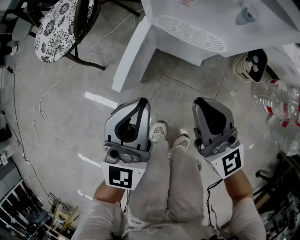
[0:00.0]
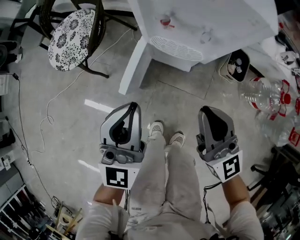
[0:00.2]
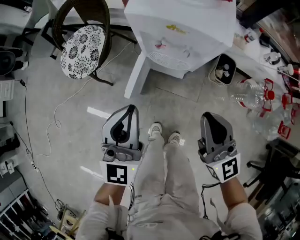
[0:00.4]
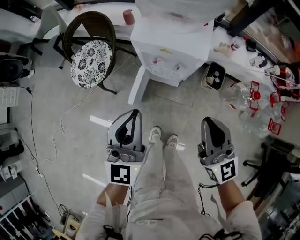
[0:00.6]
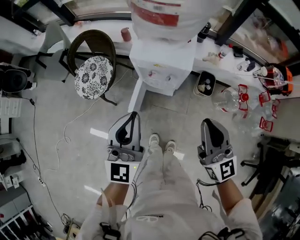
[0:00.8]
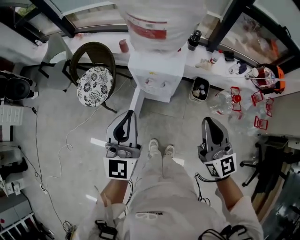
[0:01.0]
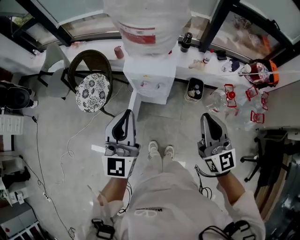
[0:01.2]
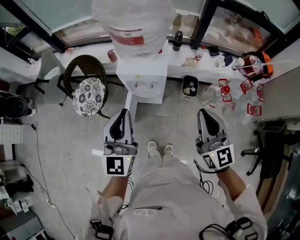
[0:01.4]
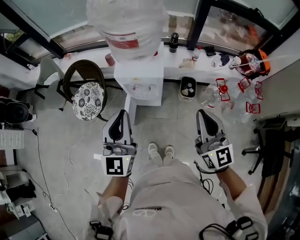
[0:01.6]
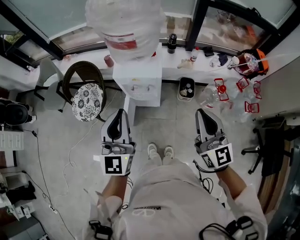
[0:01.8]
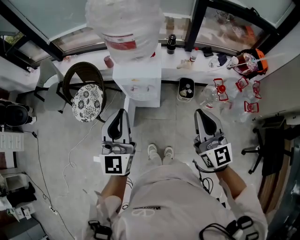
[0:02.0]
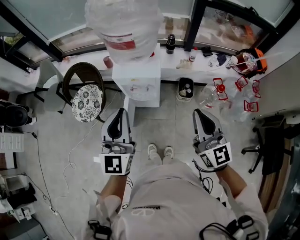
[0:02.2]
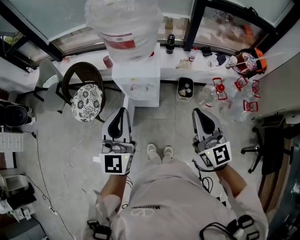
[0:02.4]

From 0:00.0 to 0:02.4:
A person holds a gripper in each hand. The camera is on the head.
From 0:00.0 to 0:01.2: The two grippers go roughly 50 cm upward. The right gripper swivels roughly 30 degrees.
From 0:01.2 to 0:02.4: The grippers make only small movements.

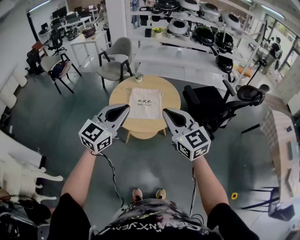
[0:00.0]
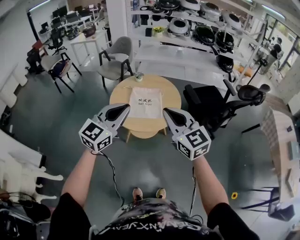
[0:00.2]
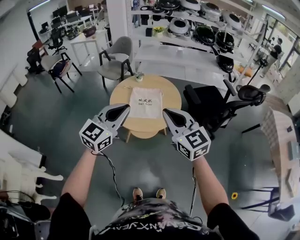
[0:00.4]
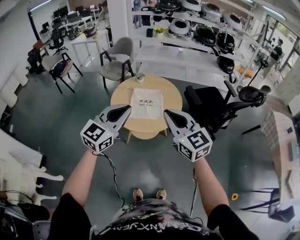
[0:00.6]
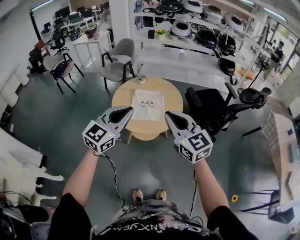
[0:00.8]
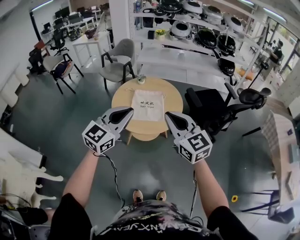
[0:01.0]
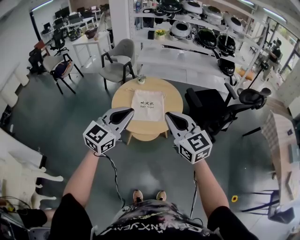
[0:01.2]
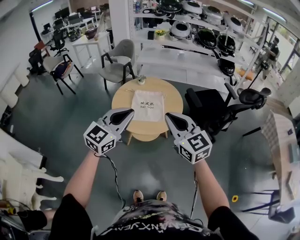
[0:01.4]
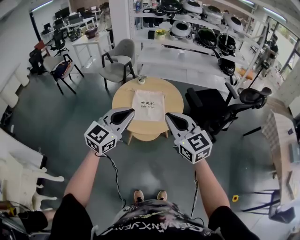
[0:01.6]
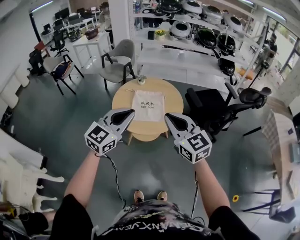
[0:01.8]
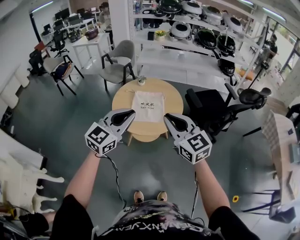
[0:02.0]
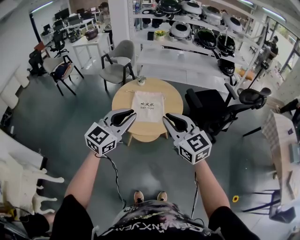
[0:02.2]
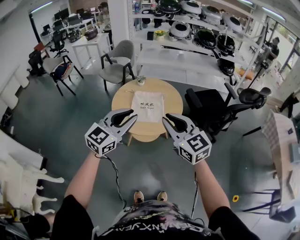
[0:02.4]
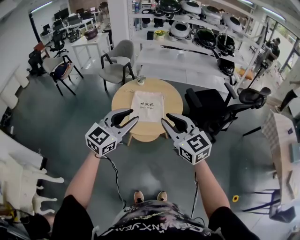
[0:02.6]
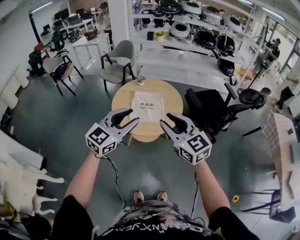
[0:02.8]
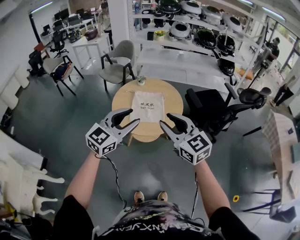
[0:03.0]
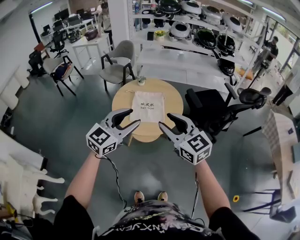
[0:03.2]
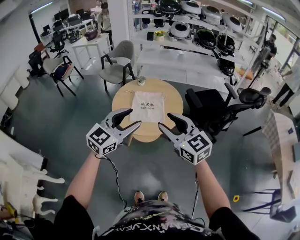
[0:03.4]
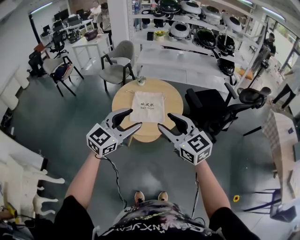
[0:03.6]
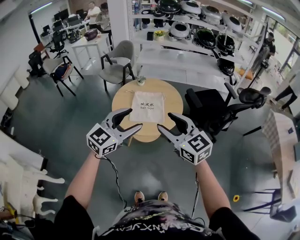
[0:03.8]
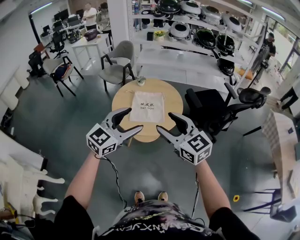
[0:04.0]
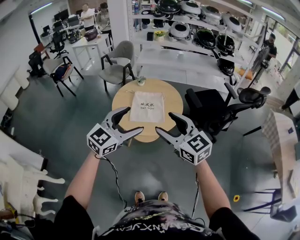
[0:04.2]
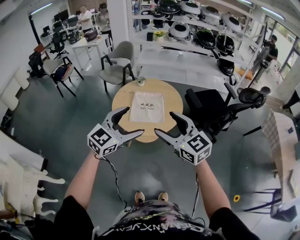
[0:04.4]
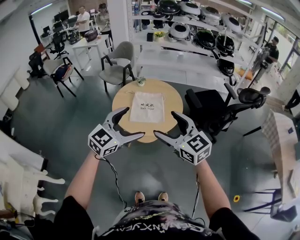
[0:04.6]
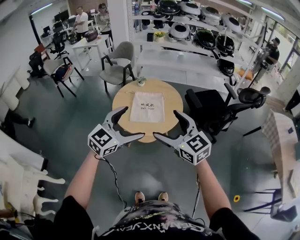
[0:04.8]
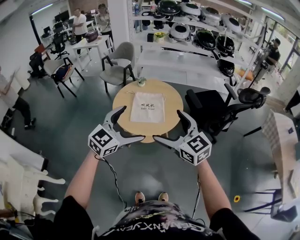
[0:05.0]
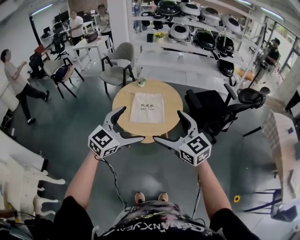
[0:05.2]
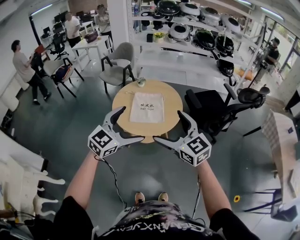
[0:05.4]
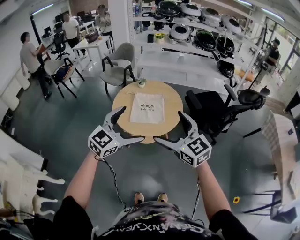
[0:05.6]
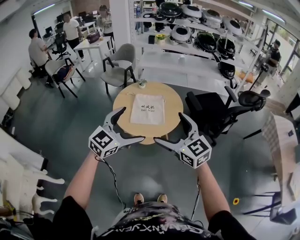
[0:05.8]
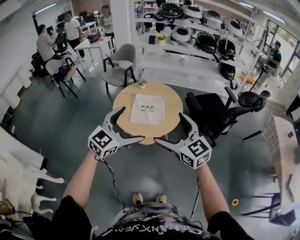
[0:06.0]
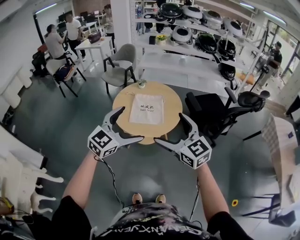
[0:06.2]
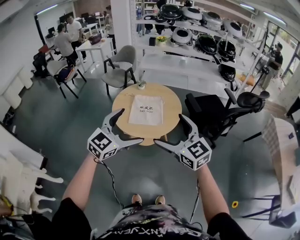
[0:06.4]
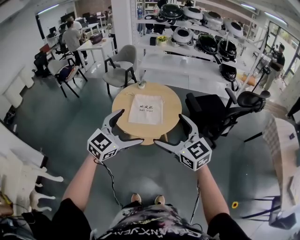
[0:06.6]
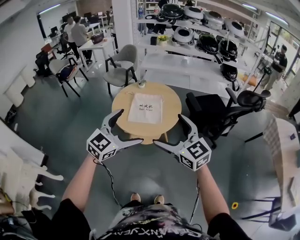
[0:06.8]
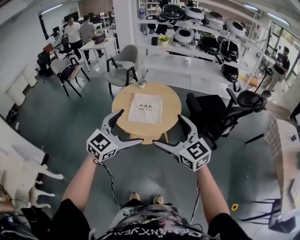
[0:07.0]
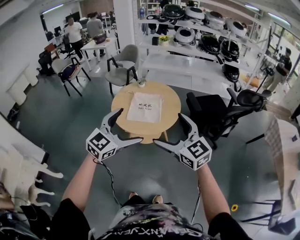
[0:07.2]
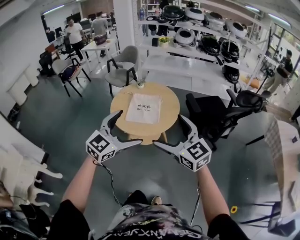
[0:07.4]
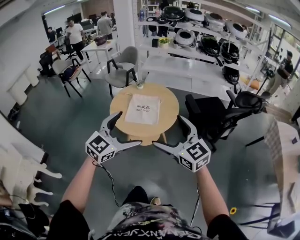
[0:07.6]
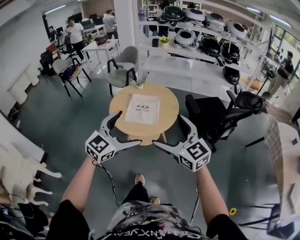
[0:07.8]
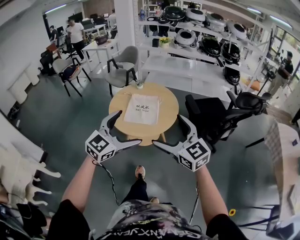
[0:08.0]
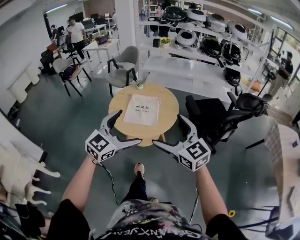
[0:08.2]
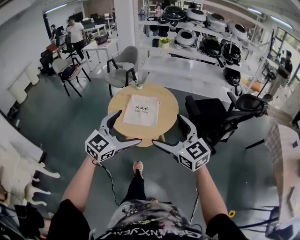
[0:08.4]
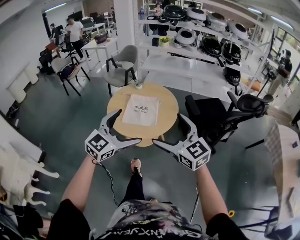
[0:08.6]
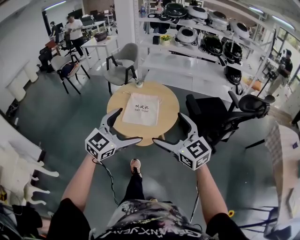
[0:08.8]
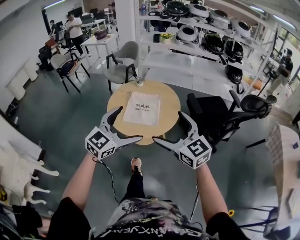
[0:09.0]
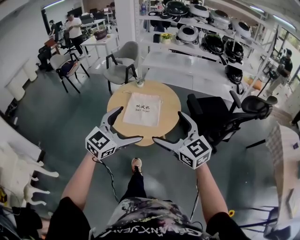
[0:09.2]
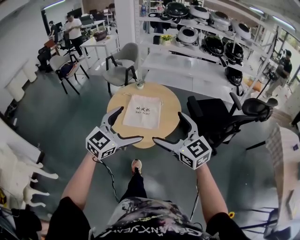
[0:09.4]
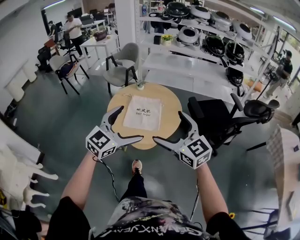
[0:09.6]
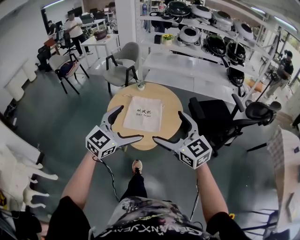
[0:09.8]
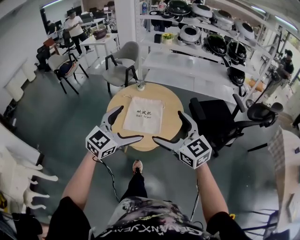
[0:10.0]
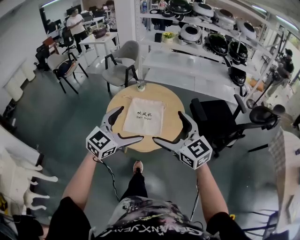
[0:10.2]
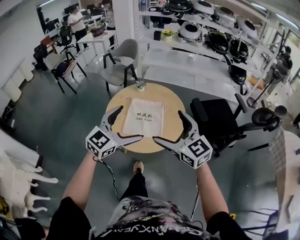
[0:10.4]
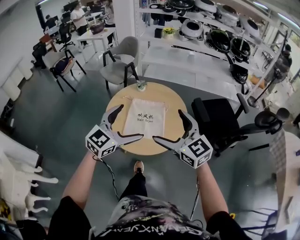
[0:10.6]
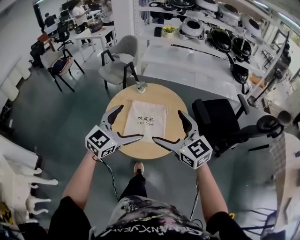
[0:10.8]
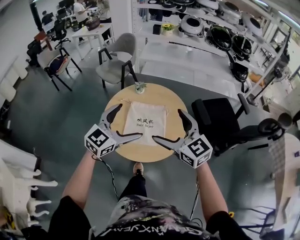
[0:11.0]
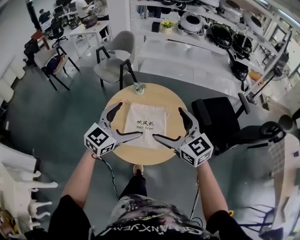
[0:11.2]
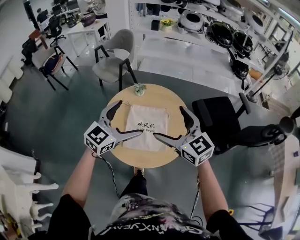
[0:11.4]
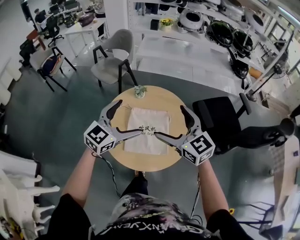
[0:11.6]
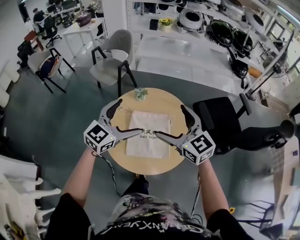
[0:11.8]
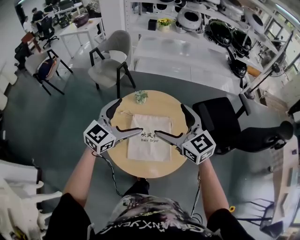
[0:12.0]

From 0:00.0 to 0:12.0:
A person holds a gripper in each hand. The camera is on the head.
From 0:00.0 to 0:03.0: The grippers stay close to where they were, moving slightly.
From 0:03.0 to 0:04.4: The right gripper opens; the left gripper opens its fingers.
From 0:04.4 to 0:06.0: The right gripper opens its fingers.
From 0:06.0 to 0:07.6: Both grippers move to the right, about 5 cm.
From 0:07.6 to 0:09.0: Both grippers move forward, about 5 cm.
From 0:09.0 to 0:10.4: Both grippers travel together forward, about 15 cm.
From 0:10.4 to 0:12.0: Both grippers travel together forward, roughly 25 cm.

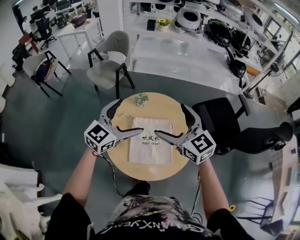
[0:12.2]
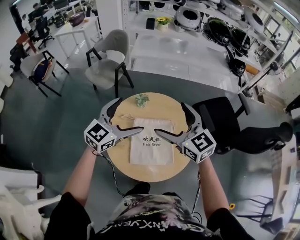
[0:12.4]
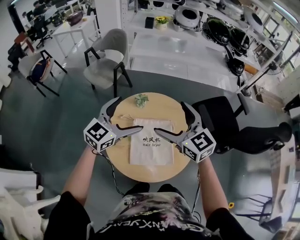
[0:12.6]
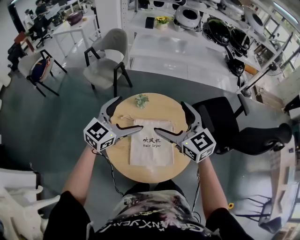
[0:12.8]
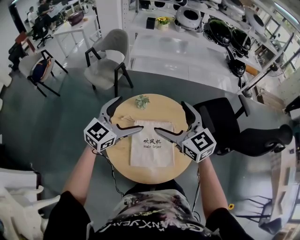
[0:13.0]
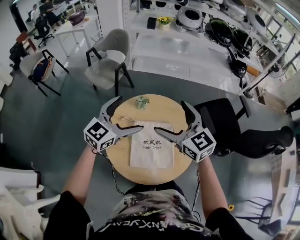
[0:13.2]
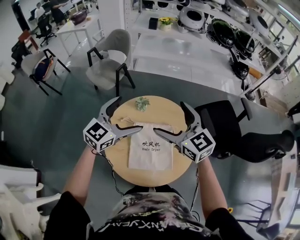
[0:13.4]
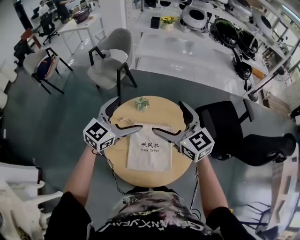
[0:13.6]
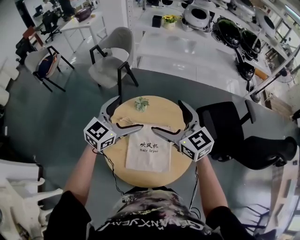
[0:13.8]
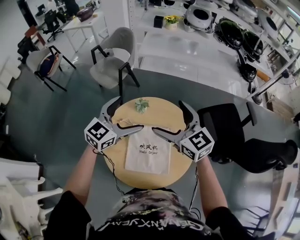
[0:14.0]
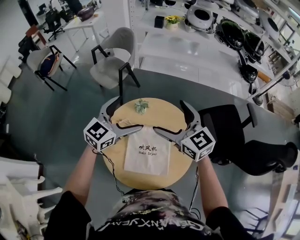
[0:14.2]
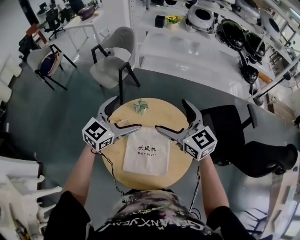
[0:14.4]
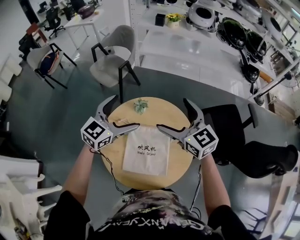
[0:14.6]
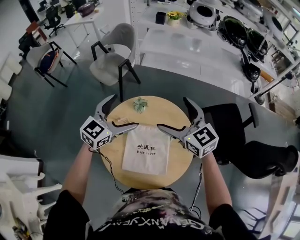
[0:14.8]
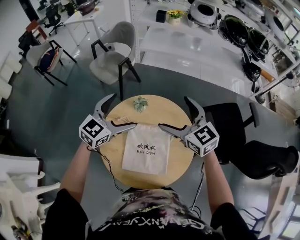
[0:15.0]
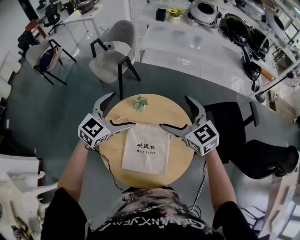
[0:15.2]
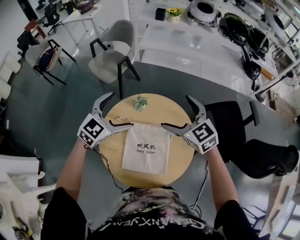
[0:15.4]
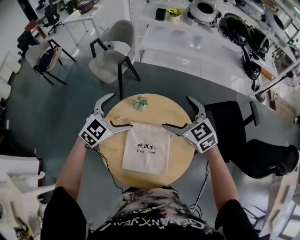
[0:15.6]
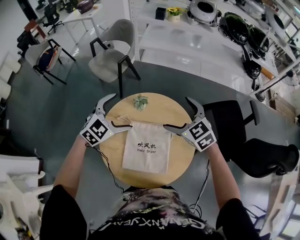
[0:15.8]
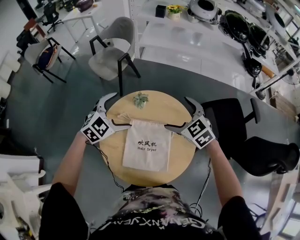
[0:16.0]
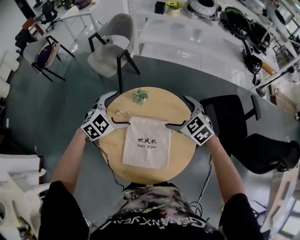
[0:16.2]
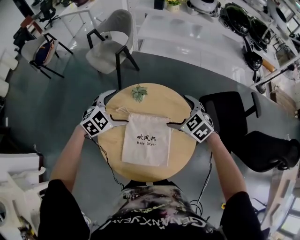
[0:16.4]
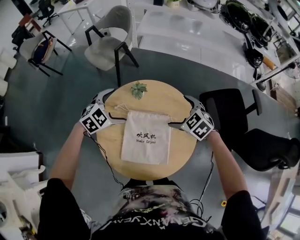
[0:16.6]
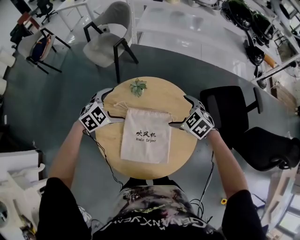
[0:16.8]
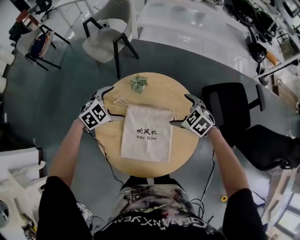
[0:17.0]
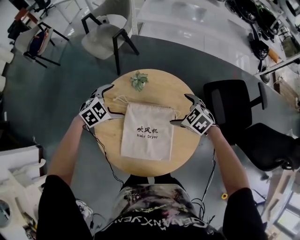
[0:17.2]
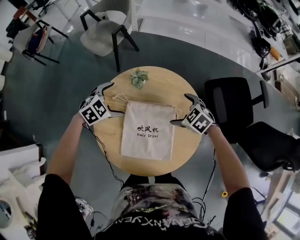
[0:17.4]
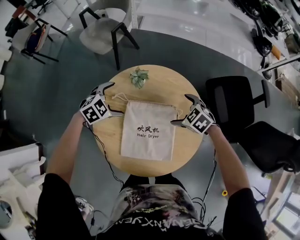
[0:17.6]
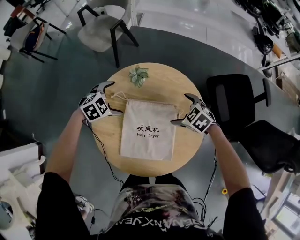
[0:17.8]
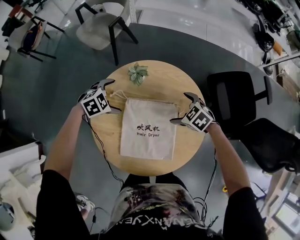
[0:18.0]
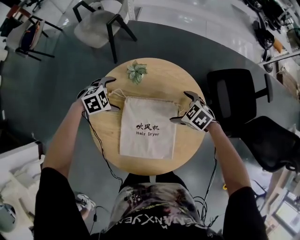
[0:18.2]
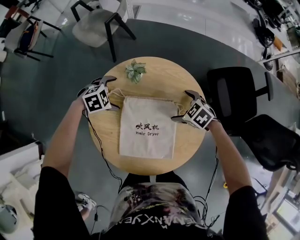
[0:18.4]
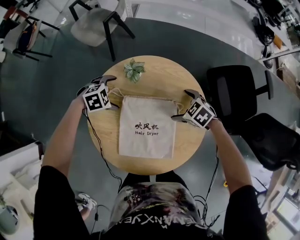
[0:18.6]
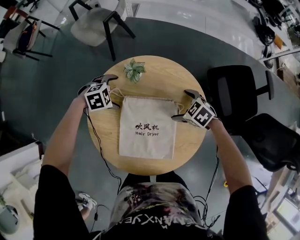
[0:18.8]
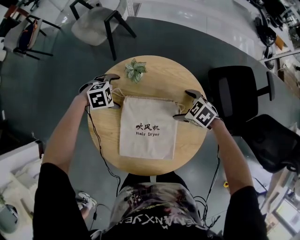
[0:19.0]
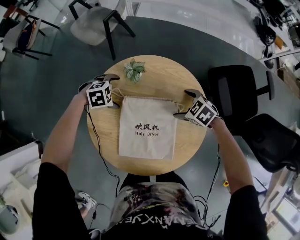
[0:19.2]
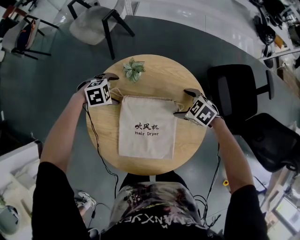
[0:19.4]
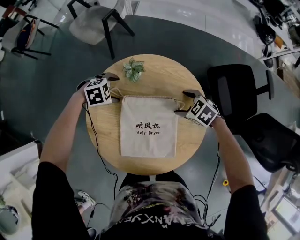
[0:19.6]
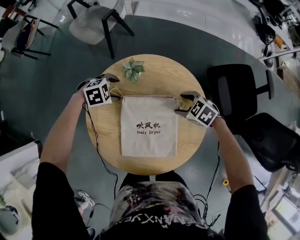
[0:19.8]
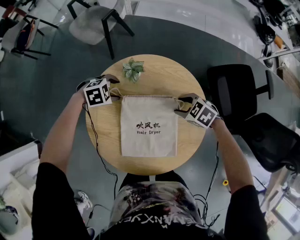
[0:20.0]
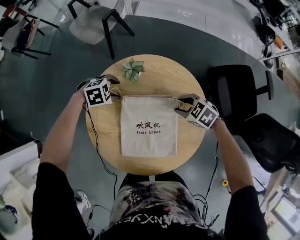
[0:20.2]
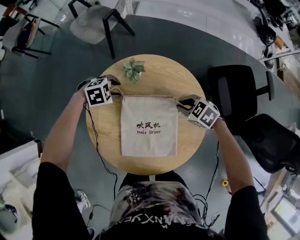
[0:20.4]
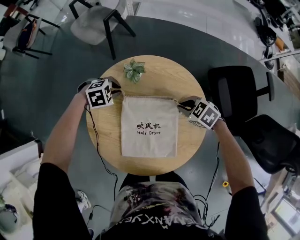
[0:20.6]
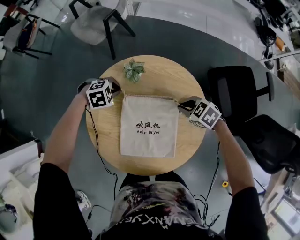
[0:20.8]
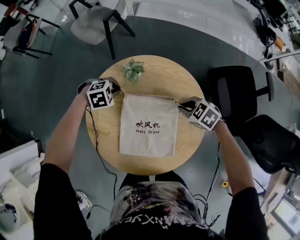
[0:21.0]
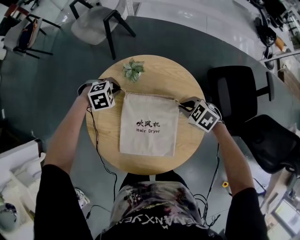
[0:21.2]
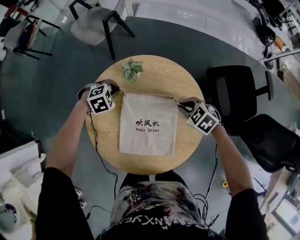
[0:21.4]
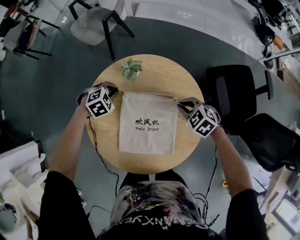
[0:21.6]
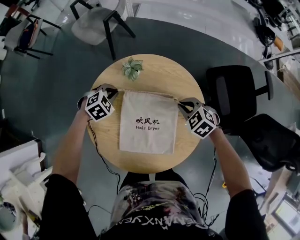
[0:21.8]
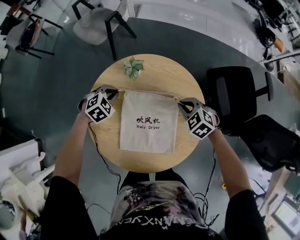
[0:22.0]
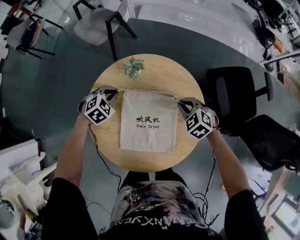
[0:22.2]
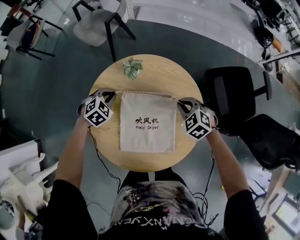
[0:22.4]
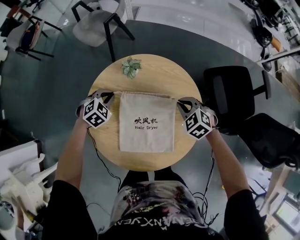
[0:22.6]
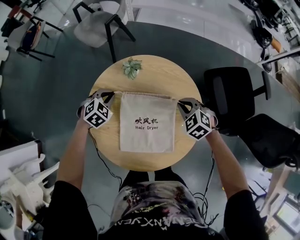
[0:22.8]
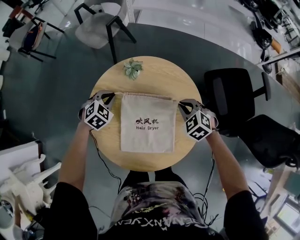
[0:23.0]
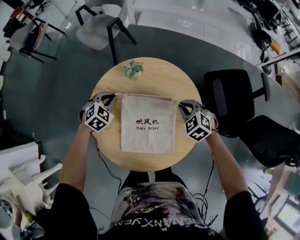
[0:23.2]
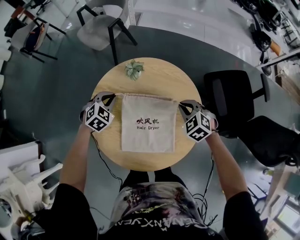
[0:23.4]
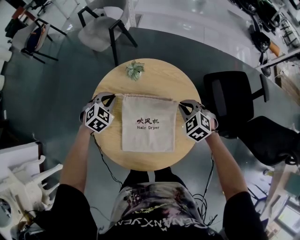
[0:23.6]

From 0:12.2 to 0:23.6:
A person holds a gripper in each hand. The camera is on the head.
From 0:12.2 to 0:13.6: The grippers both shift forward by roughly 5 cm.
From 0:13.6 to 0:15.0: The right gripper shifts about 5 cm forward. Meanwhile the left gripper changes place by some 5 cm.
From 0:15.0 to 0:16.4: Both grippers move downward, some 15 cm. The left gripper changes its angle by some 30 degrees. The right gripper rotates about 30 degrees.
From 0:16.4 to 0:17.8: Both grippers travel together downward, some 15 cm.
From 0:17.8 to 0:19.4: The left gripper heads downward, covering about 5 cm.
From 0:19.4 to 0:20.8: The right gripper closes up. The left gripper closes its fingers.
From 0:20.8 to 0:22.2: The left gripper rotates approximately 30 degrees; the right gripper rotates roughly 20 degrees.
From 0:22.2 to 0:23.6: The left gripper moves about 5 cm.
